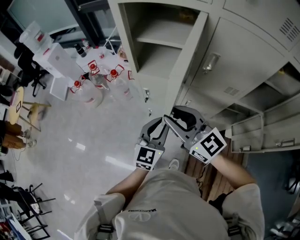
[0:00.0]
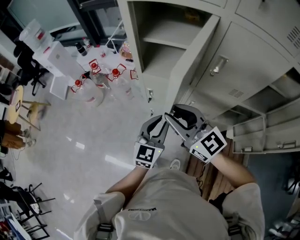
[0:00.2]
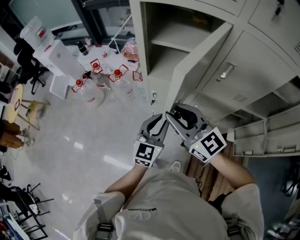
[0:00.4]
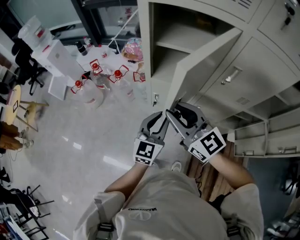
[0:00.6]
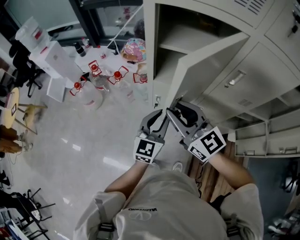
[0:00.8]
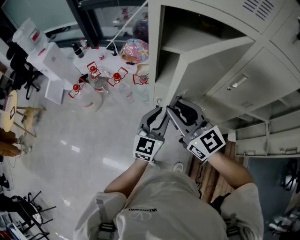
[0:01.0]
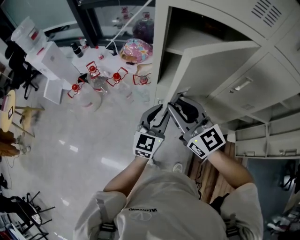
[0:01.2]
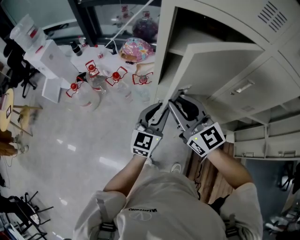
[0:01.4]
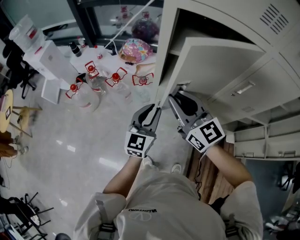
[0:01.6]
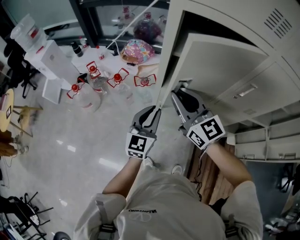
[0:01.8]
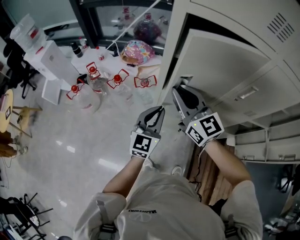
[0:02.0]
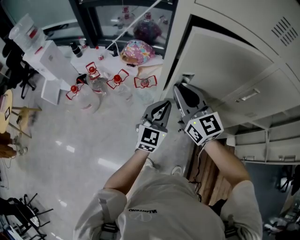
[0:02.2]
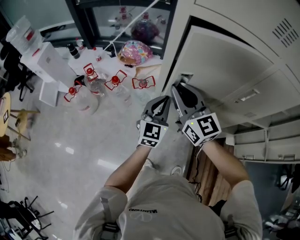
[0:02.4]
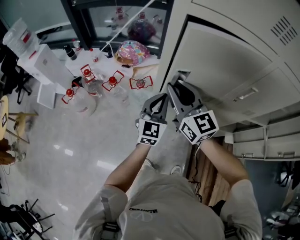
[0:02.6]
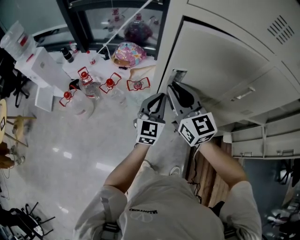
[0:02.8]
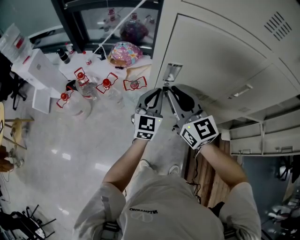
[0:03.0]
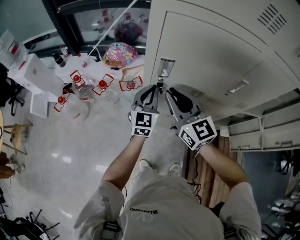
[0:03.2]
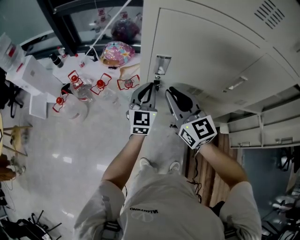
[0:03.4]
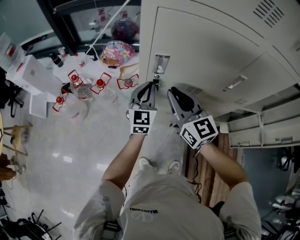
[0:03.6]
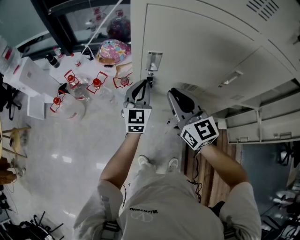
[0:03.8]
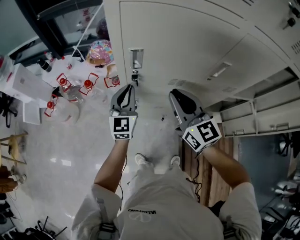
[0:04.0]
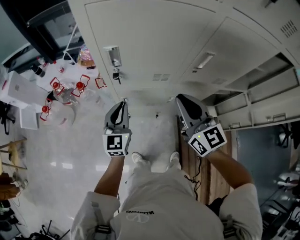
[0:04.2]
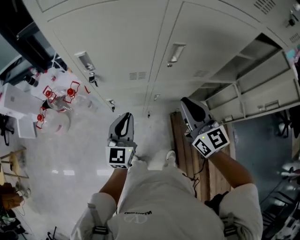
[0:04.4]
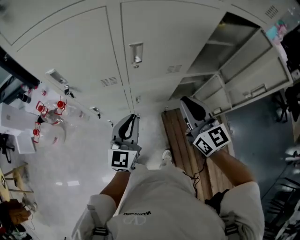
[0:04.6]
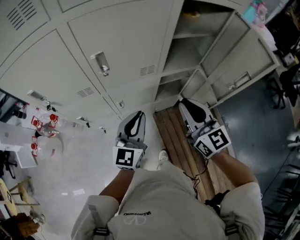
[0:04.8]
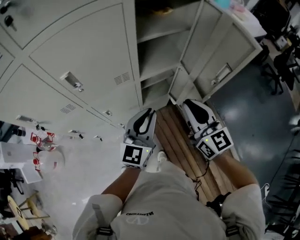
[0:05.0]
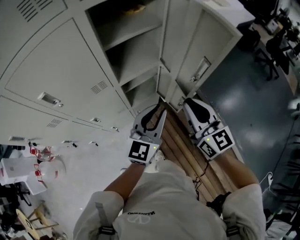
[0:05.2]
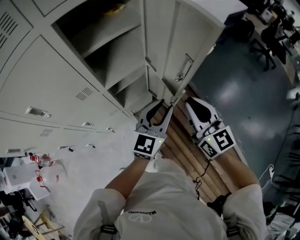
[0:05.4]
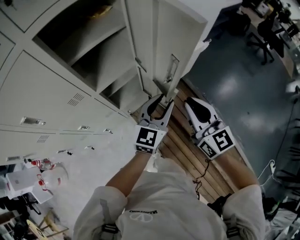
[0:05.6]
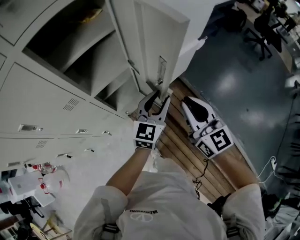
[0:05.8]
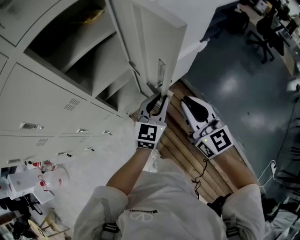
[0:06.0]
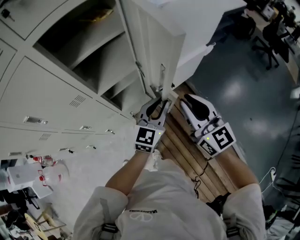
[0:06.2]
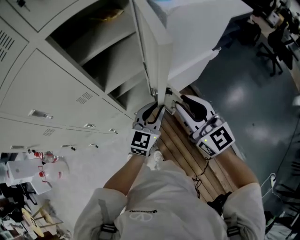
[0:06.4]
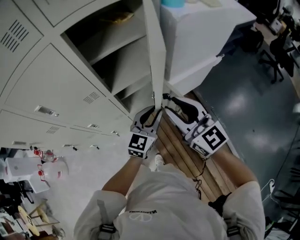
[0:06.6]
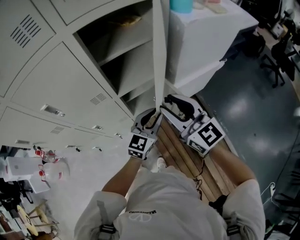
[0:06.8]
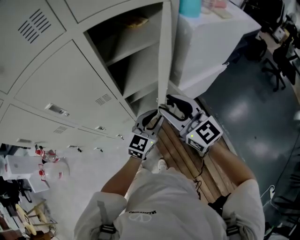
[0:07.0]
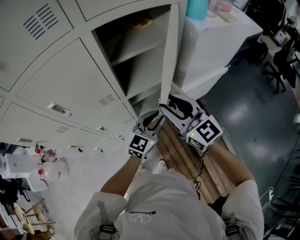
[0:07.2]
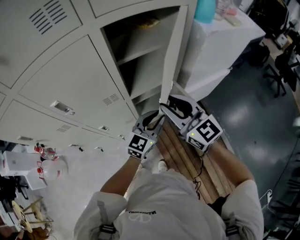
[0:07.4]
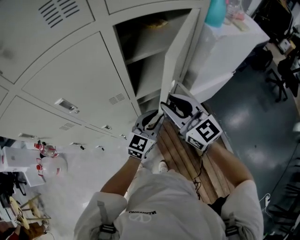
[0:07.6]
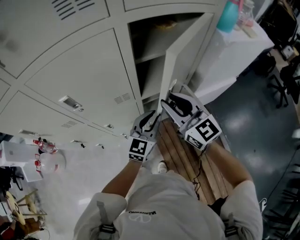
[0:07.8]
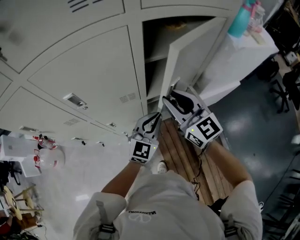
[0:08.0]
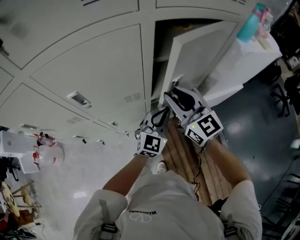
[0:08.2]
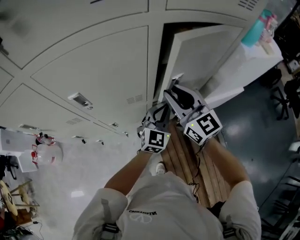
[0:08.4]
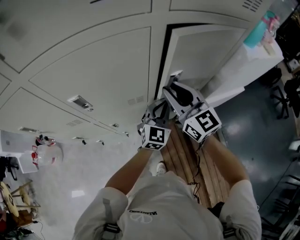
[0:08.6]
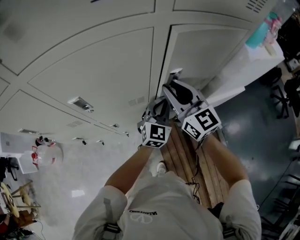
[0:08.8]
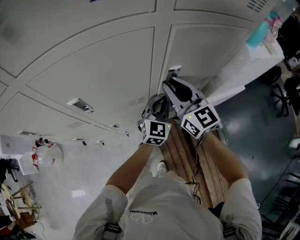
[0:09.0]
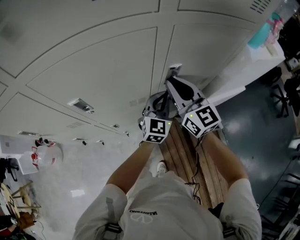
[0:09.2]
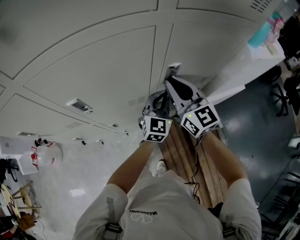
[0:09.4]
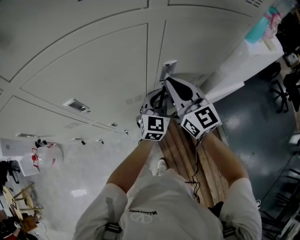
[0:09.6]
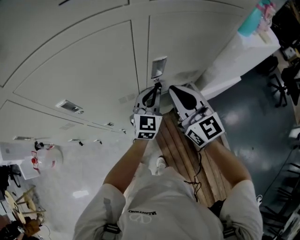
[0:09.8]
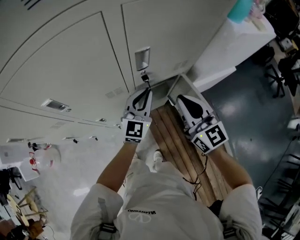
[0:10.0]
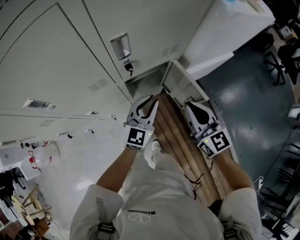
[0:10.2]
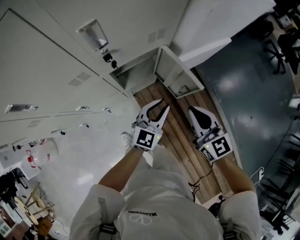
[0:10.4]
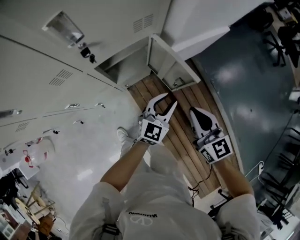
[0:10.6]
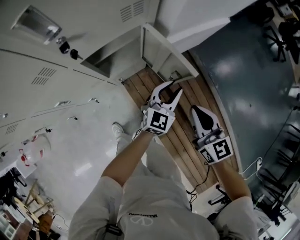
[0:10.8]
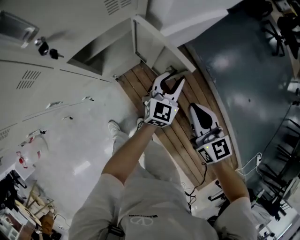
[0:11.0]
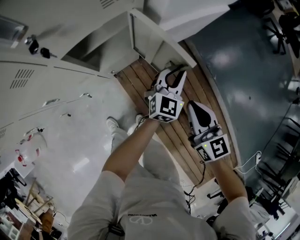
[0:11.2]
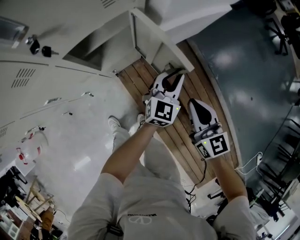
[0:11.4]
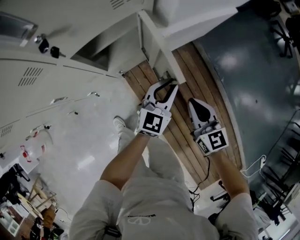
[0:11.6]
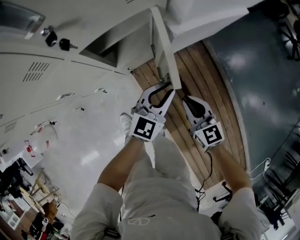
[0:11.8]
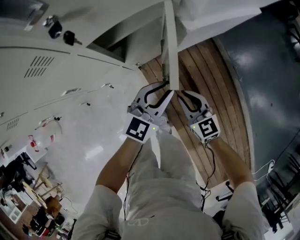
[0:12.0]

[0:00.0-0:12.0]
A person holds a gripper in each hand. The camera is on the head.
0:00.0 to 0:01.6: Both grippers move forward and to the left, approximately 20 cm.
0:01.6 to 0:03.0: The left gripper goes roughly 10 cm forward, and closes, while the right gripper goes approximately 5 cm forward.
0:03.0 to 0:04.4: The left gripper shifts some 20 cm backward and to the right. The right gripper goes about 30 cm to the right and backward.
0:04.4 to 0:06.0: The pair of grippers is taken some 60 cm. The left gripper turns by approximately 40 degrees, while the right gripper turns by approximately 30 degrees.
0:06.0 to 0:07.6: Both grippers travel together to the left, roughly 20 cm. The right gripper swivels about 30 degrees.
0:07.6 to 0:09.0: Both grippers travel together forward and to the left, approximately 15 cm. The left gripper changes its angle by approximately 20 degrees.
0:09.0 to 0:10.4: The left gripper shifts approximately 25 cm backward, to the right and downward, and swivels roughly 20 degrees; the right gripper travels to the right, backward and downward by roughly 35 cm, and rotates approximately 20 degrees.
0:10.4 to 0:12.0: The left gripper goes roughly 10 cm downward, and travels to the right and back again, some 15 cm each way. Meanwhile the right gripper shifts approximately 25 cm downward.

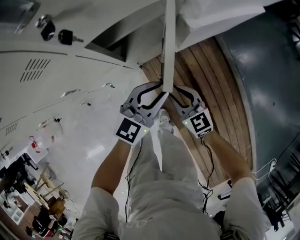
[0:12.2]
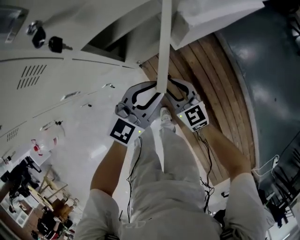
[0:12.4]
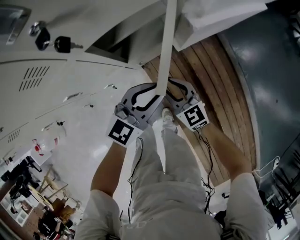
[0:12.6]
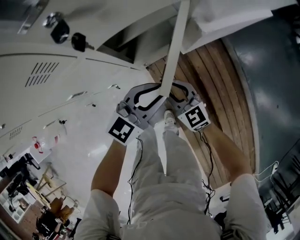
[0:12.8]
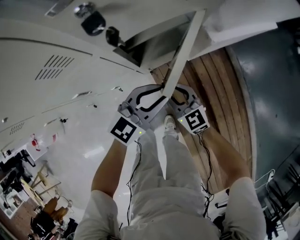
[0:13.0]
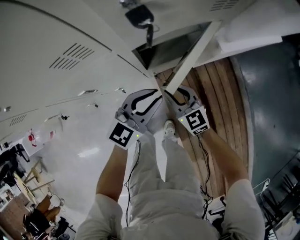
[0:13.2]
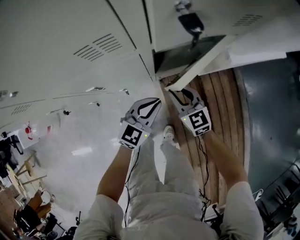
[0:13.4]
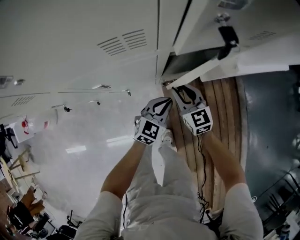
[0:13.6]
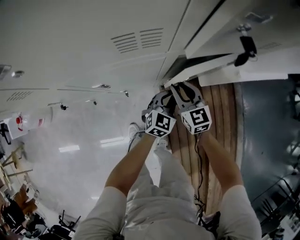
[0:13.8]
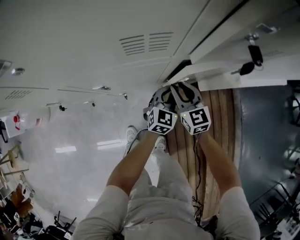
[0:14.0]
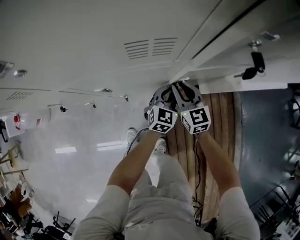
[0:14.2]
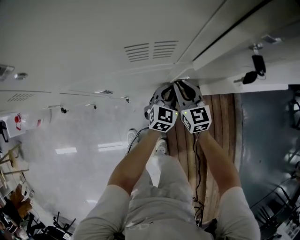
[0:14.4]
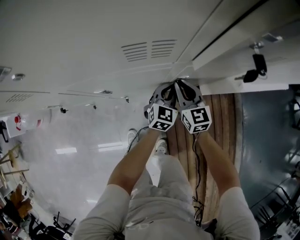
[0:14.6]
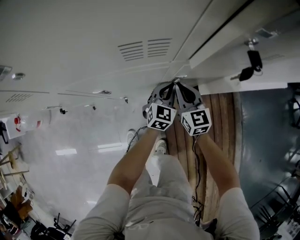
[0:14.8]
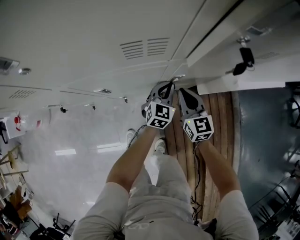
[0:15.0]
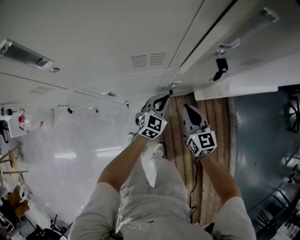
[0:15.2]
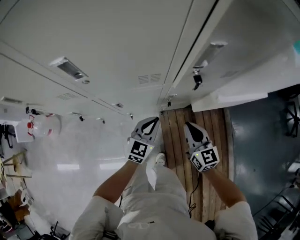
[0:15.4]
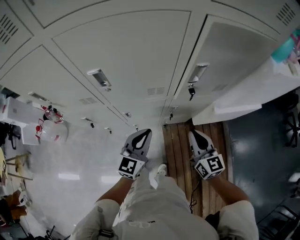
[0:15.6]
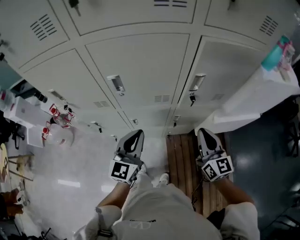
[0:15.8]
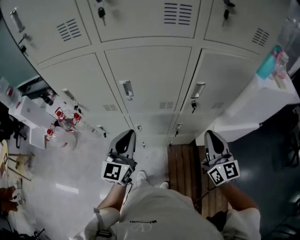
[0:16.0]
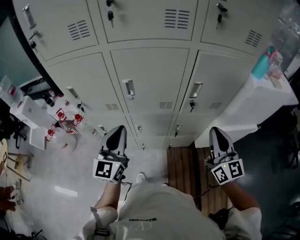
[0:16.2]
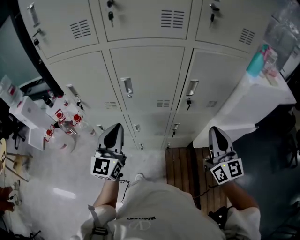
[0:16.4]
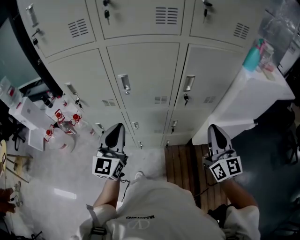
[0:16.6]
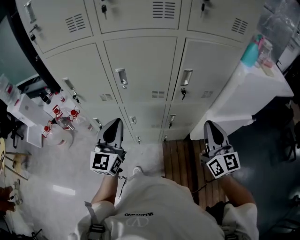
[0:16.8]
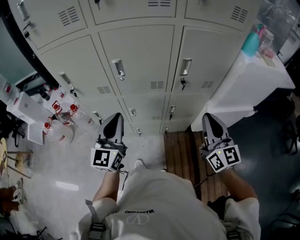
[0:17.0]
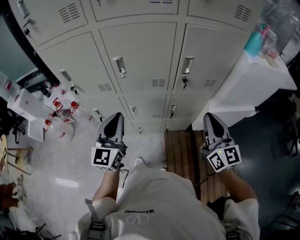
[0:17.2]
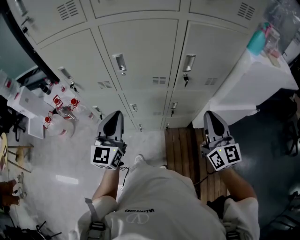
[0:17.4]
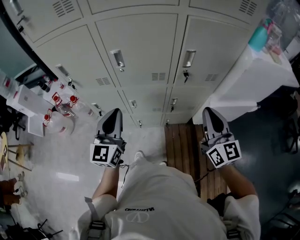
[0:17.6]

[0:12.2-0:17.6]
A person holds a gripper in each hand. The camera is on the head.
0:12.2 to 0:13.6: The left gripper heads to the left and downward, covering some 20 cm, and swivels approximately 30 degrees. The right gripper goes about 20 cm to the left and forward.
0:13.6 to 0:15.0: The right gripper closes up, while the left gripper shifts approximately 10 cm forward.
0:15.0 to 0:16.2: The right gripper goes approximately 50 cm upward, and rotates roughly 30 degrees, while the left gripper shifts roughly 60 cm upward, to the left and backward, and tips its fingers upward by roughly 30 degrees.
0:16.2 to 0:17.6: The left gripper changes place by about 5 cm.

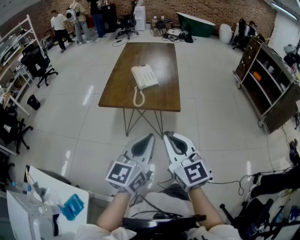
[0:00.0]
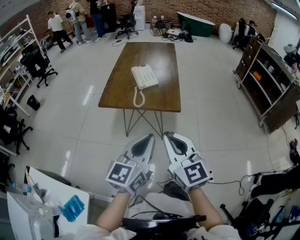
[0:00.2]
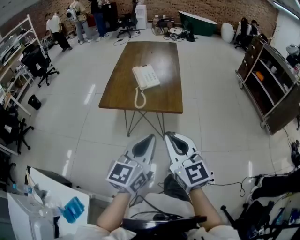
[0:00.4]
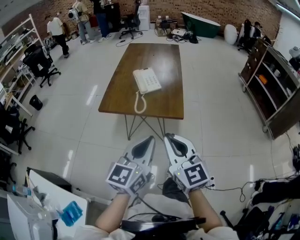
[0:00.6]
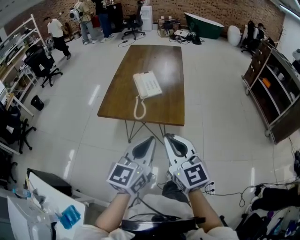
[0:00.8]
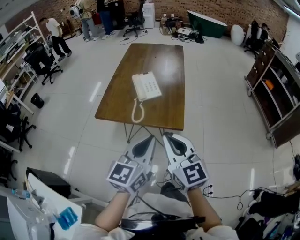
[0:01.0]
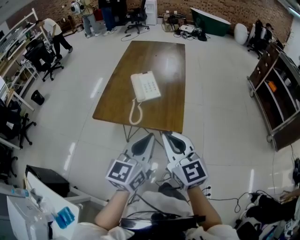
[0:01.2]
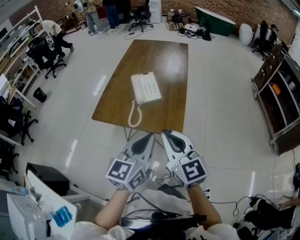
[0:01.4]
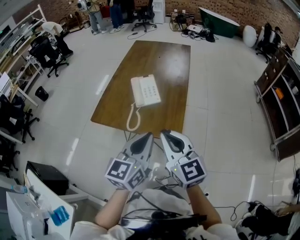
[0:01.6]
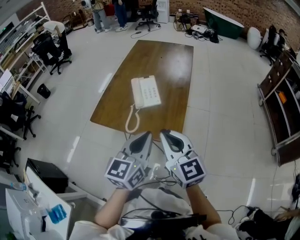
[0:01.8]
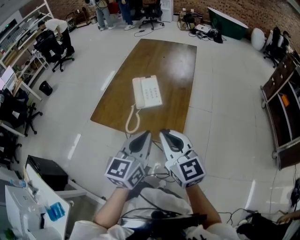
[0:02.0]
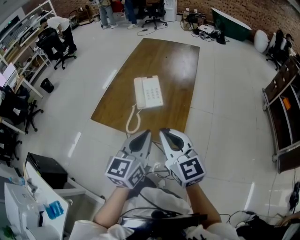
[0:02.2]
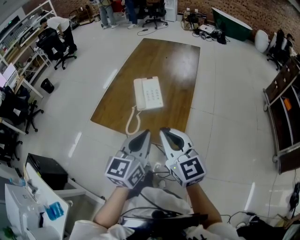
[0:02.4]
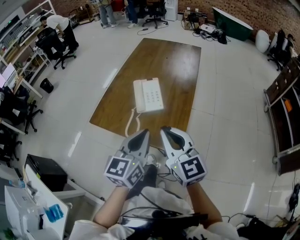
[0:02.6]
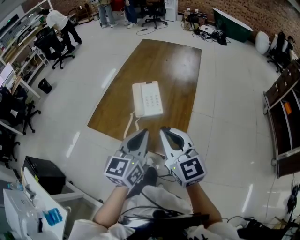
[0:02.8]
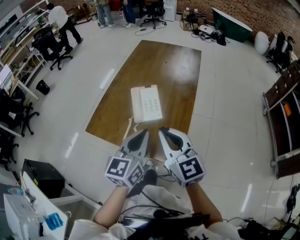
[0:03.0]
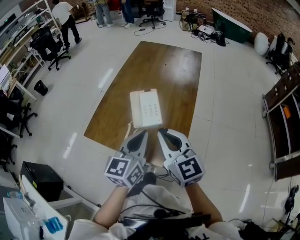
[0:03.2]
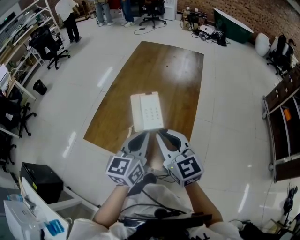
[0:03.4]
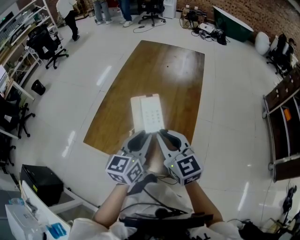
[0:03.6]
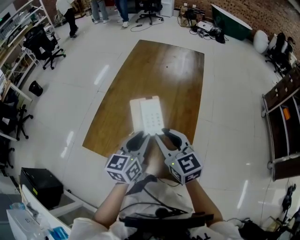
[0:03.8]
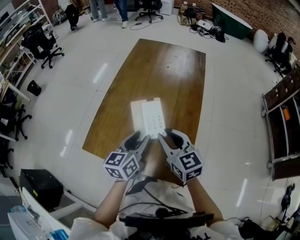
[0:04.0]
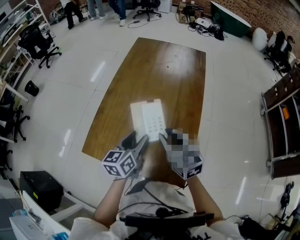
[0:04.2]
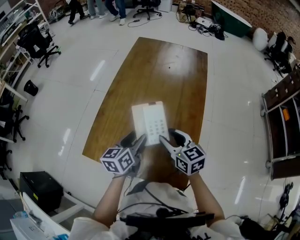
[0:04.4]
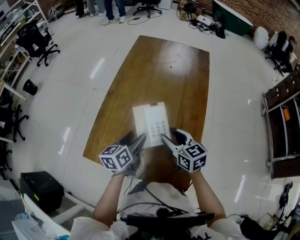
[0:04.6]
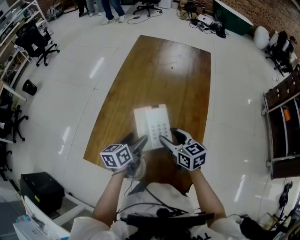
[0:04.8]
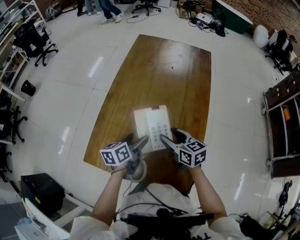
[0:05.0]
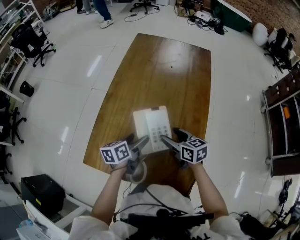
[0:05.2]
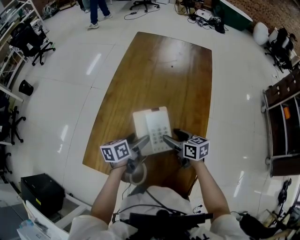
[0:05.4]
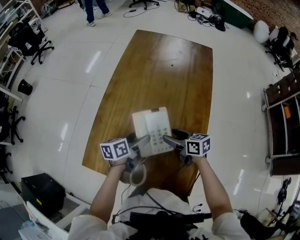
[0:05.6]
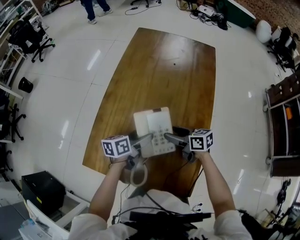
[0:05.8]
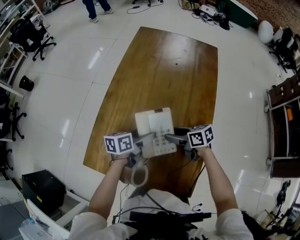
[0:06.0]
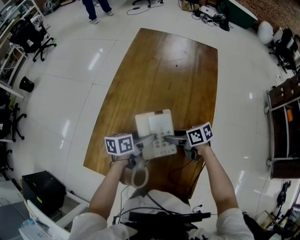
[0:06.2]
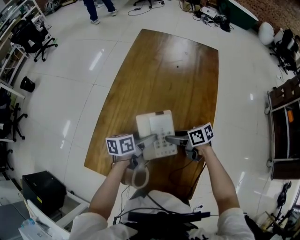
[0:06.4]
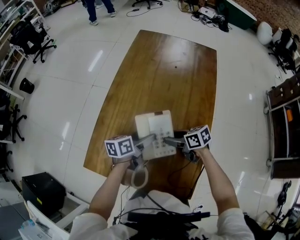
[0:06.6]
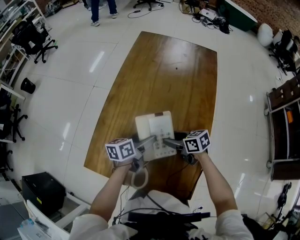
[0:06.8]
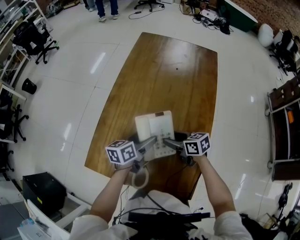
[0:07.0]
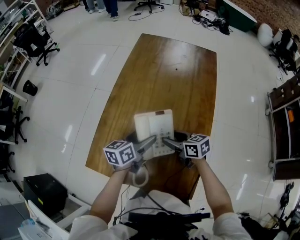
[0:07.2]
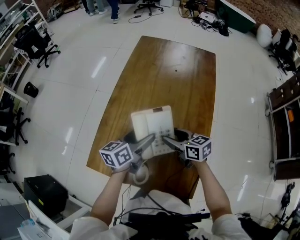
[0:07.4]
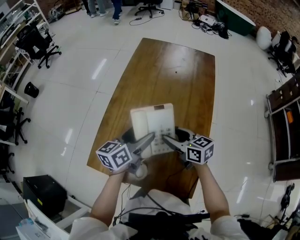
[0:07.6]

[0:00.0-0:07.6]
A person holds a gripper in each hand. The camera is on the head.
0:00.0 to 0:01.6: The two grippers go roughly 20 cm forward.
0:01.6 to 0:03.0: The two grippers go roughly 15 cm forward.
0:03.0 to 0:04.6: The left gripper goes some 25 cm forward, downward and to the left, rotates approximately 30 degrees, and opens up, while the right gripper moves forward and downward, approximately 25 cm, changes its angle by roughly 30 degrees, and opens its fingers.
0:04.6 to 0:06.0: Both grippers travel together downward and forward, about 10 cm. The right gripper rotates about 40 degrees, and opens up; the left gripper turns by roughly 20 degrees.
0:06.0 to 0:07.6: Both grippers travel together upward, roughly 10 cm. The left gripper rotates approximately 20 degrees. Meanwhile the right gripper turns by about 20 degrees.
